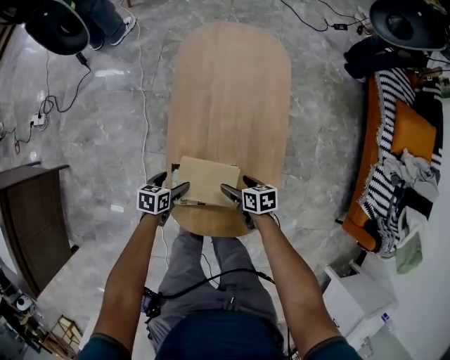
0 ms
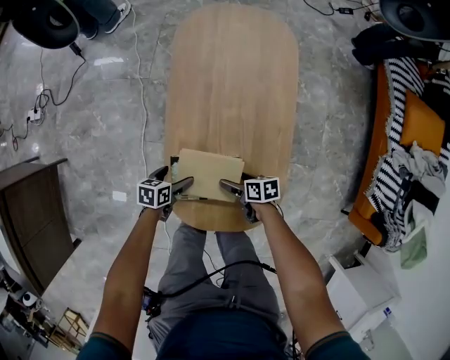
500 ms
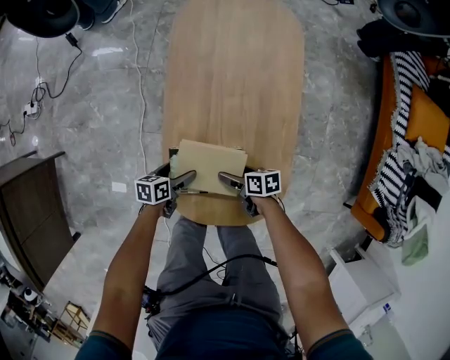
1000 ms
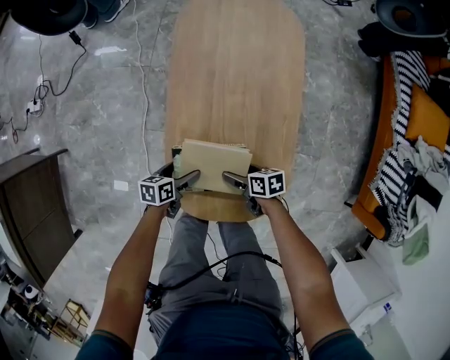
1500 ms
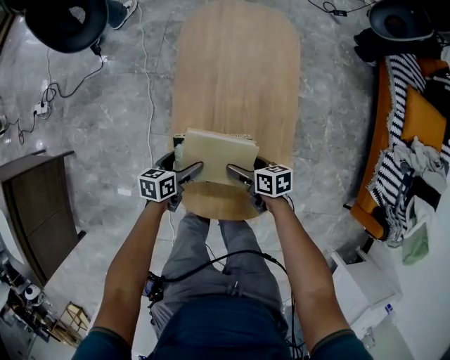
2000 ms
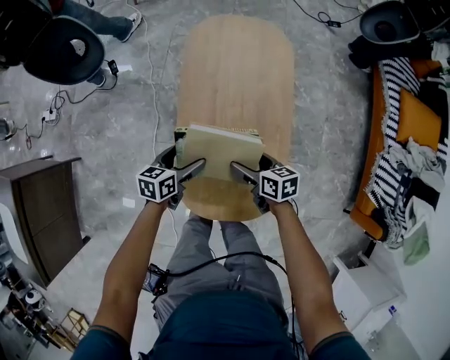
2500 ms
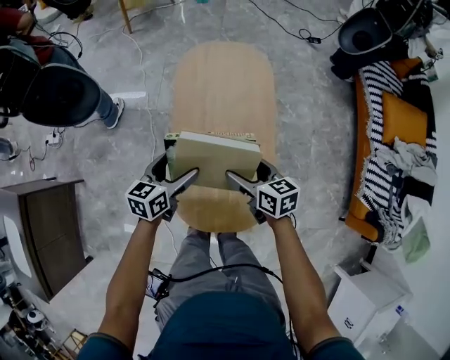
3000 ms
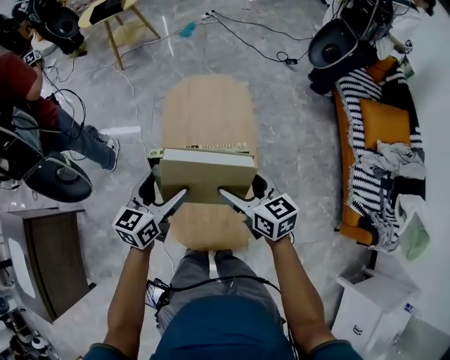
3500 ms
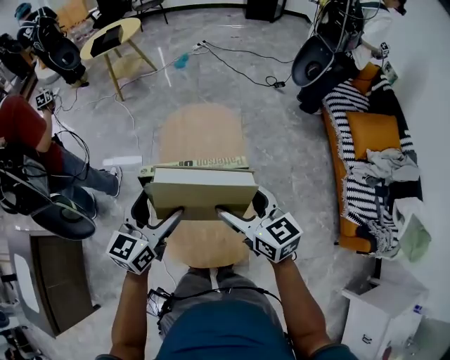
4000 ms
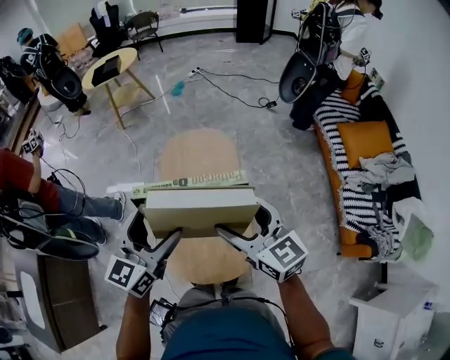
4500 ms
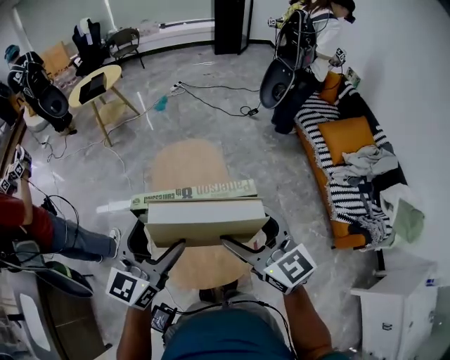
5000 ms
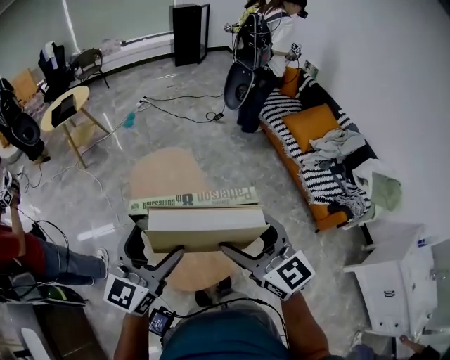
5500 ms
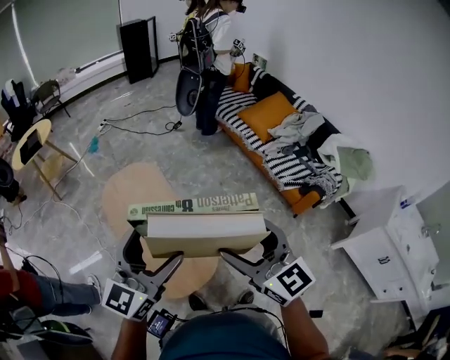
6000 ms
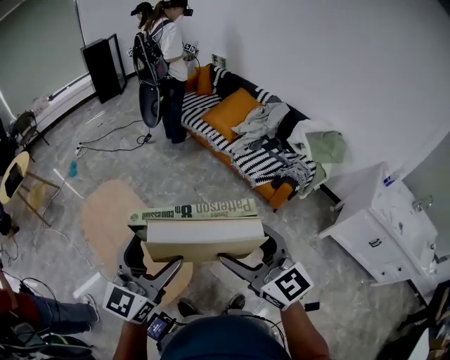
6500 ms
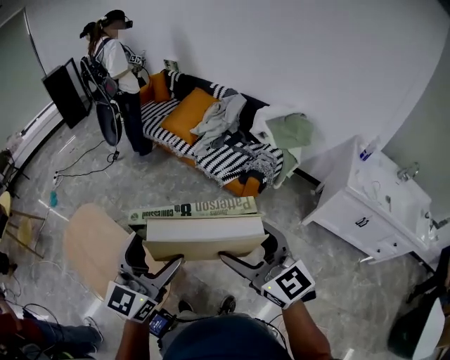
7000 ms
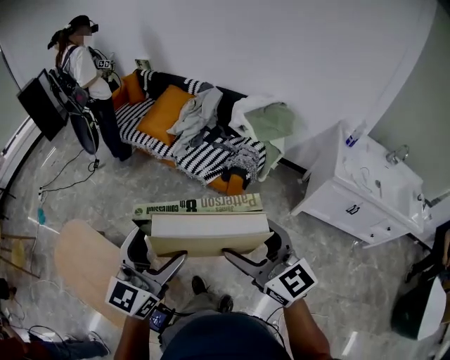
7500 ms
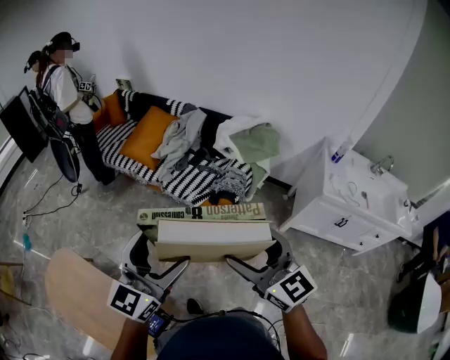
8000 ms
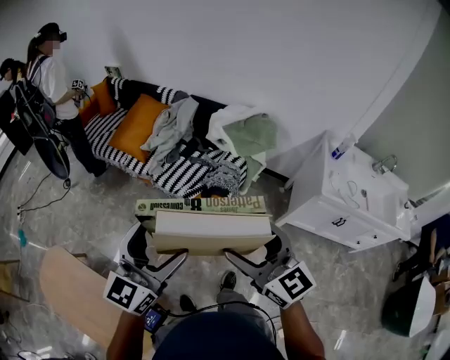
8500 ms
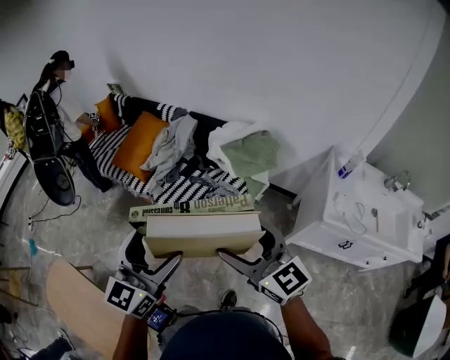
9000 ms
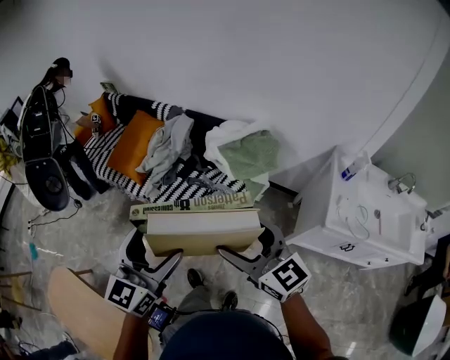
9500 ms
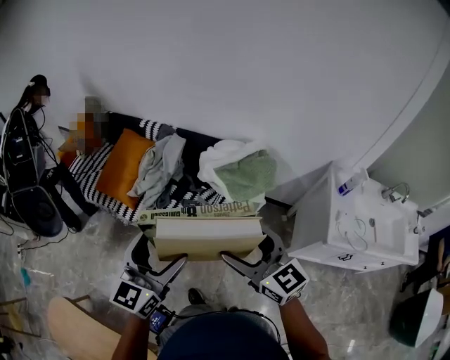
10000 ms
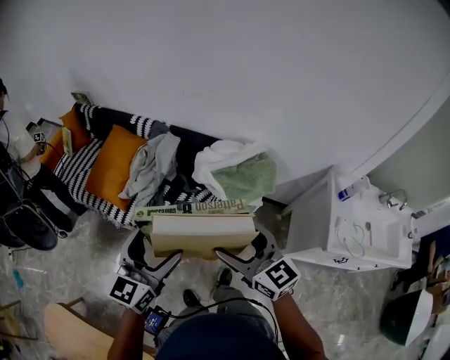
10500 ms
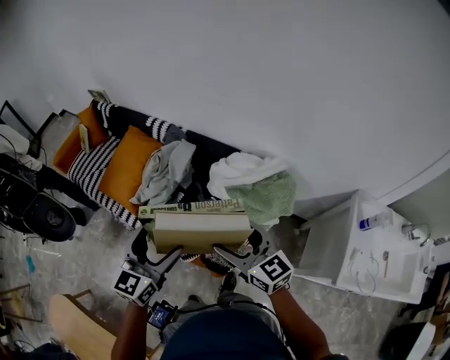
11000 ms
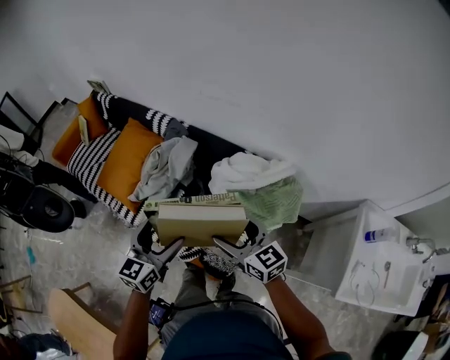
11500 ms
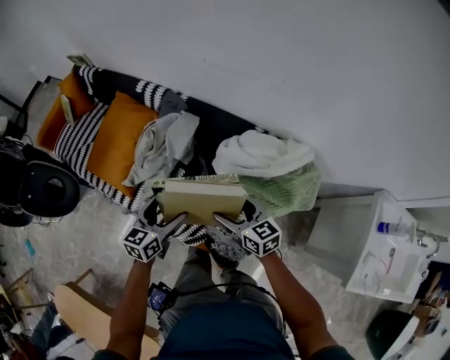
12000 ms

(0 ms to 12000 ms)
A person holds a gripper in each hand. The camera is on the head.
0 ms - 2000 ms: The right gripper reaches approximately 5 cm downward, then returns; the left gripper ends up some 5 cm from where it was.
2000 ms - 4000 ms: Both grippers move upward, some 50 cm. The right gripper swivels approximately 50 degrees; the left gripper rotates some 50 degrees.
4000 ms - 6000 ms: The left gripper moves approximately 25 cm, and rotates about 40 degrees. The right gripper ends up approximately 30 cm from where it was, and swivels some 40 degrees.
6000 ms - 8000 ms: The two grippers travel together, about 50 cm. The right gripper turns by roughly 30 degrees. The left gripper swivels approximately 30 degrees.
8000 ms - 10000 ms: The grippers both shift forward by some 35 cm.
10000 ms - 12000 ms: Both grippers travel together forward and downward, approximately 50 cm. The left gripper swivels roughly 30 degrees; the right gripper turns by about 30 degrees.

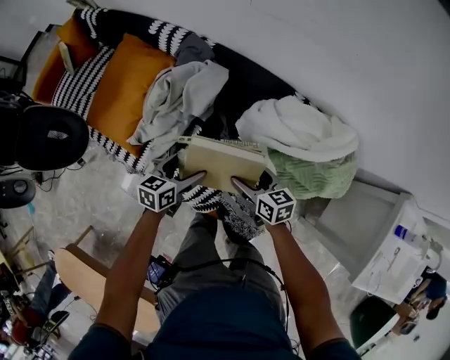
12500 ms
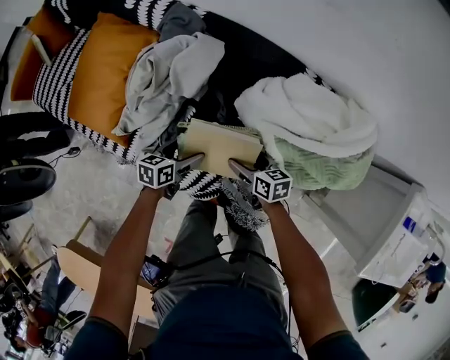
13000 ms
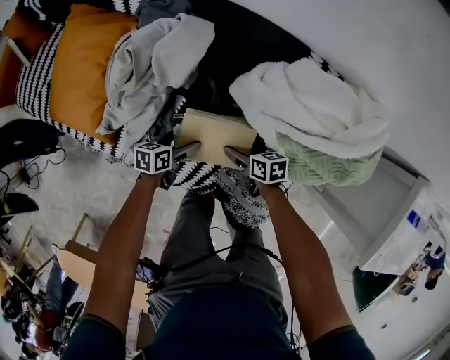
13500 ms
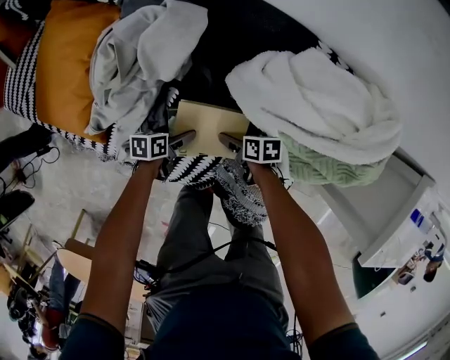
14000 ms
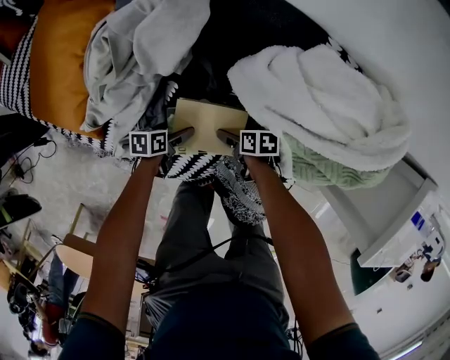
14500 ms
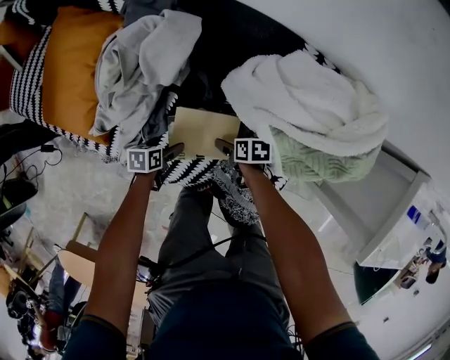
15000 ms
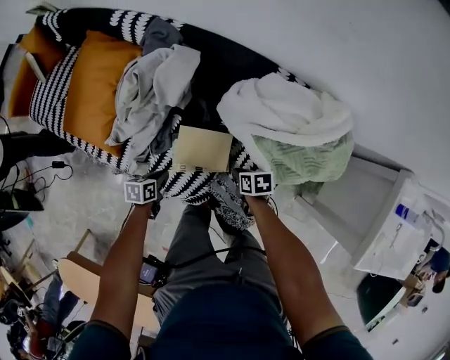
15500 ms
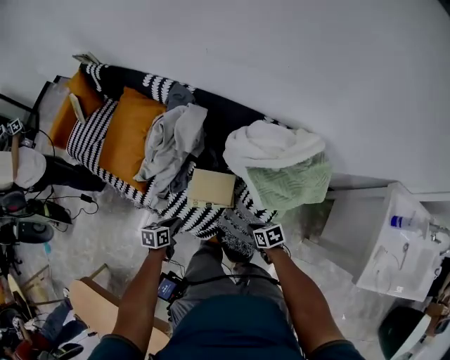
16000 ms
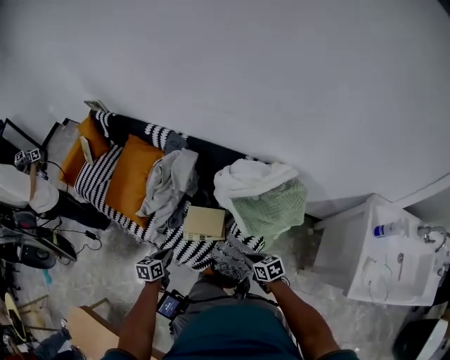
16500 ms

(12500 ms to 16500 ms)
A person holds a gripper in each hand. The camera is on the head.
12500 ms - 14500 ms: Both grippers move downward, roughly 30 cm. The right gripper turns by roughly 40 degrees, while the left gripper changes its angle by roughly 40 degrees.
14500 ms - 16500 ms: Both grippers move upward, about 30 cm. The right gripper changes its angle by about 40 degrees, and closes its fingers. The left gripper changes its angle by about 30 degrees, and closes.

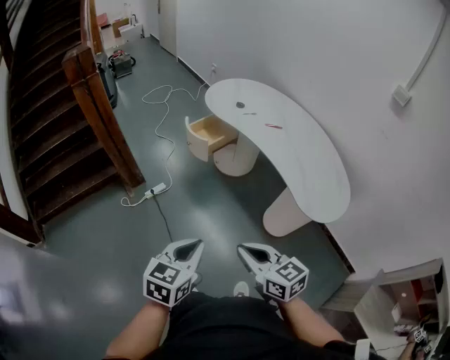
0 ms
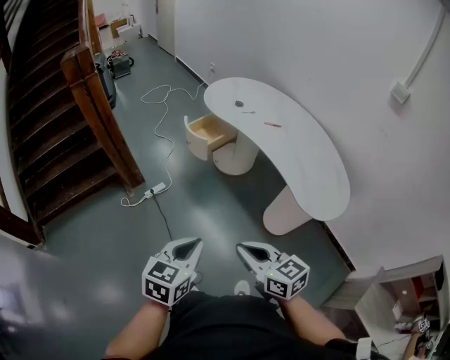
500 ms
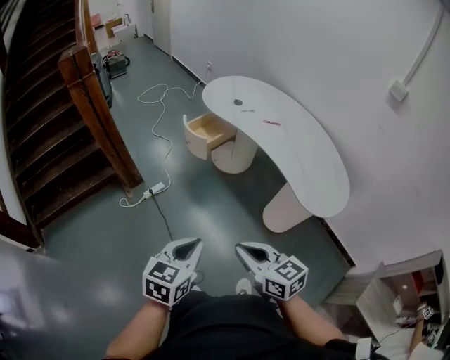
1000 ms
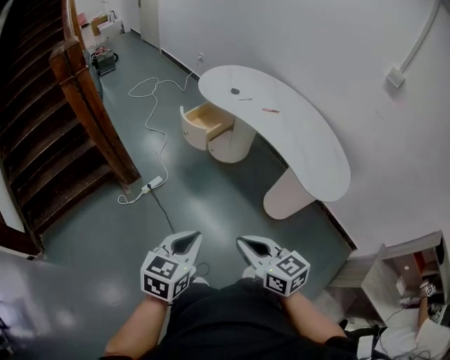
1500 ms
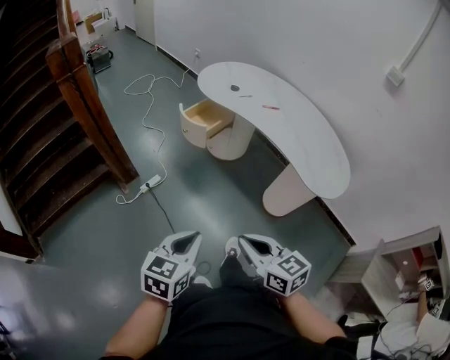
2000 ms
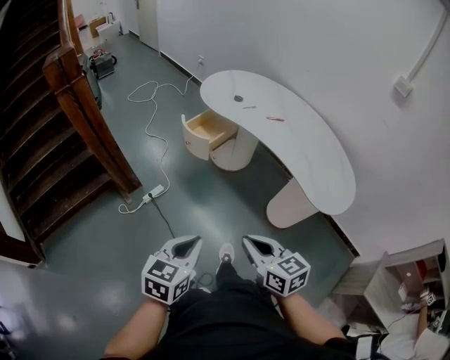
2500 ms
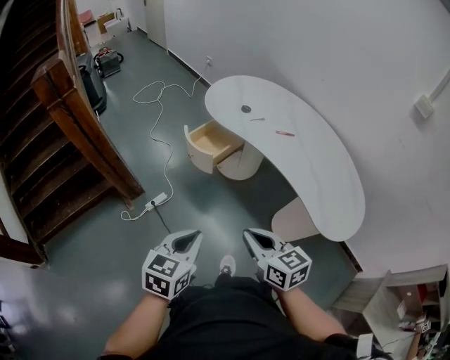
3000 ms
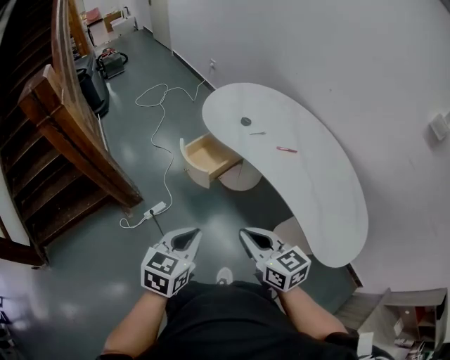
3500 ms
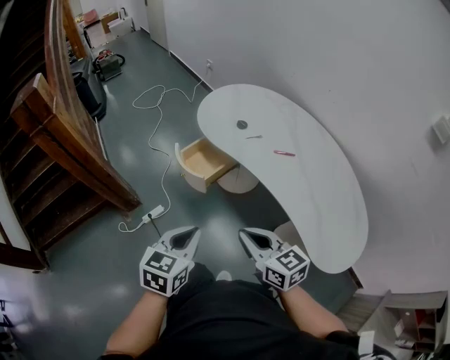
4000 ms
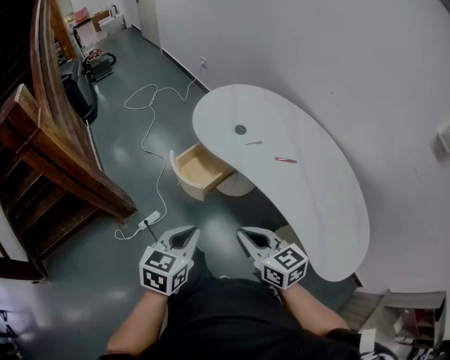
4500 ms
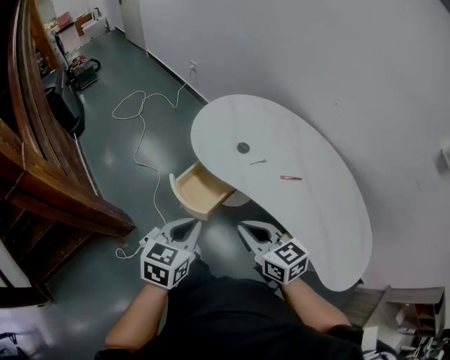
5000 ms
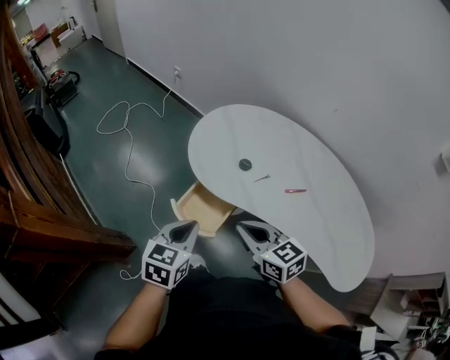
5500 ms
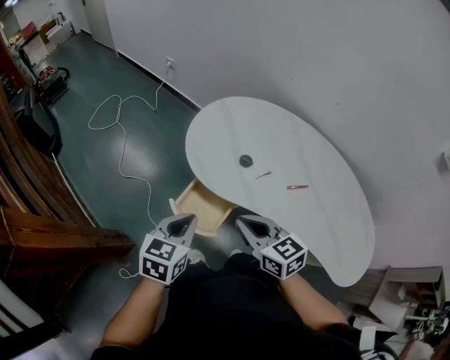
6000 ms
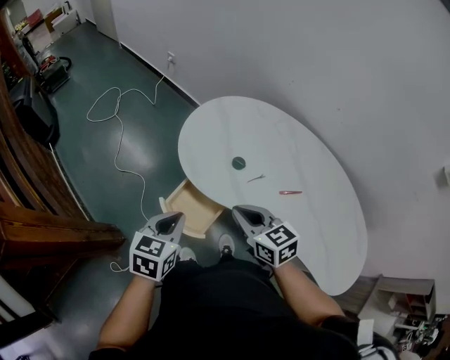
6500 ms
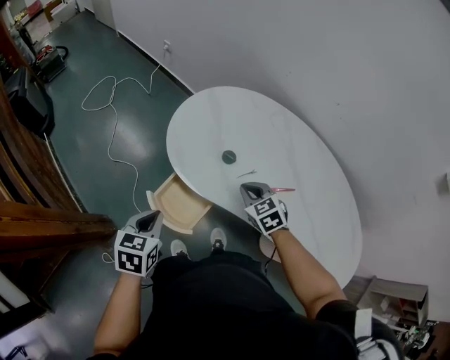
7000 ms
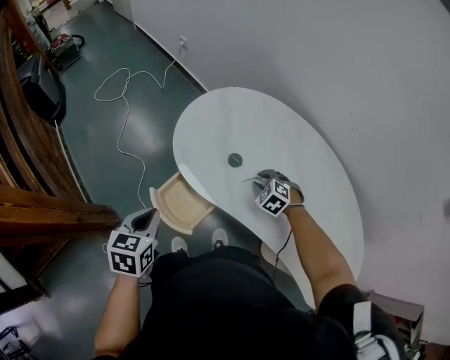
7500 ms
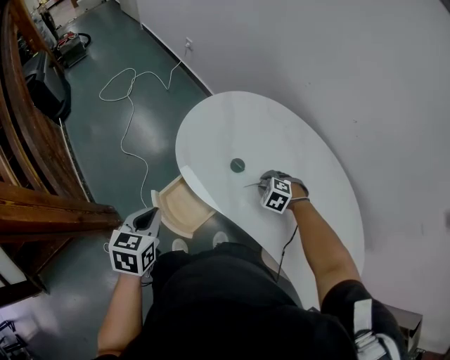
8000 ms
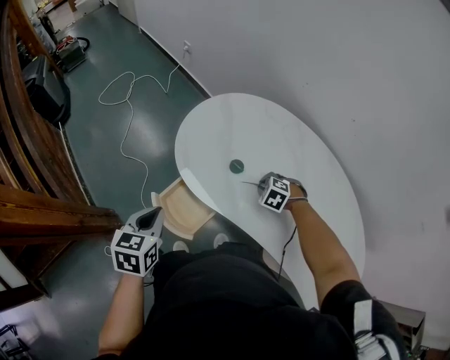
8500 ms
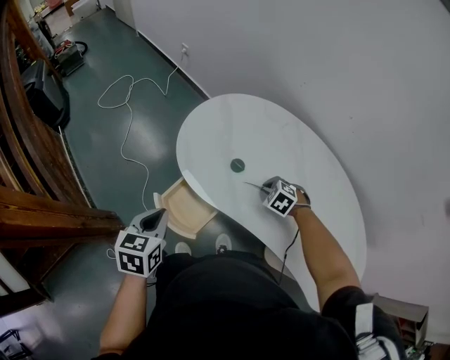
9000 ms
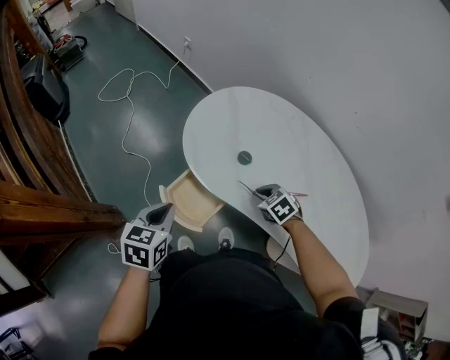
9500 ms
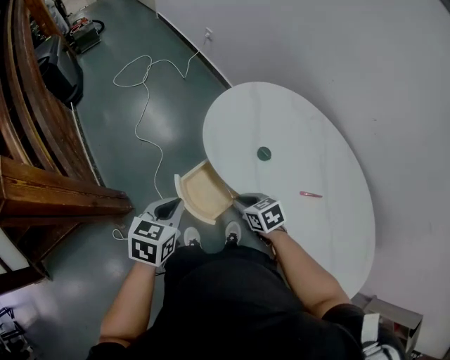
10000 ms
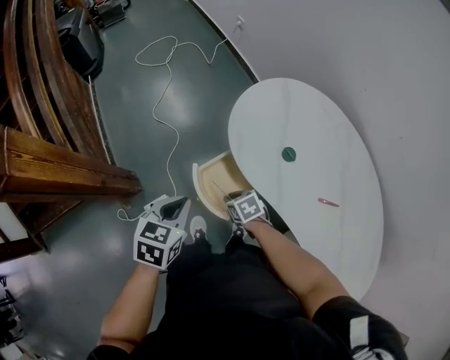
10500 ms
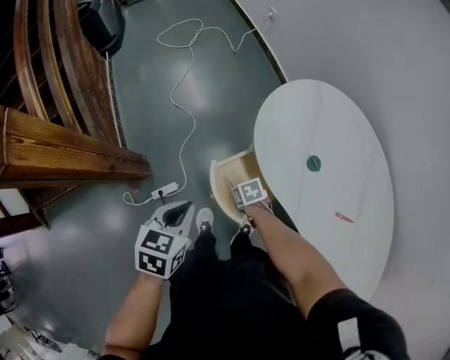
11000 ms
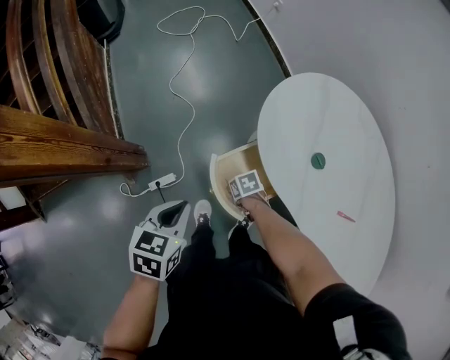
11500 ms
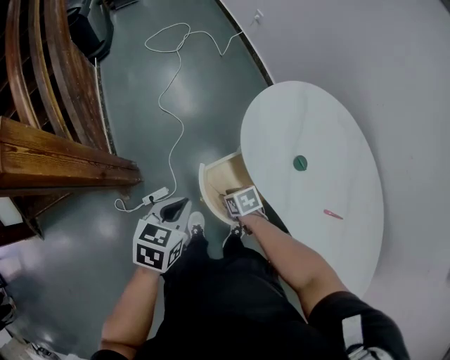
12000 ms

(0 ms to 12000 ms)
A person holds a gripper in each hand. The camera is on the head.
0 ms - 2000 ms: The grippers both shift to the left by approximately 10 cm.
2000 ms - 4000 ms: The two grippers go some 35 cm forward.
4000 ms - 6000 ms: The two grippers go approximately 35 cm forward.
6000 ms - 8000 ms: The left gripper changes place by roughly 5 cm, and rotates roughly 20 degrees; the right gripper goes approximately 35 cm downward, to the right and forward, angles its fingers downward, by roughly 50 degrees, and opens its fingers.
8000 ms - 10000 ms: The right gripper travels to the left and backward by approximately 20 cm, and rotates around the line of its fingers by some 50 degrees, clockwise from behind.
10000 ms - 12000 ms: The left gripper shifts by about 5 cm. Meanwhile the right gripper is displaced downward by roughly 15 cm.
